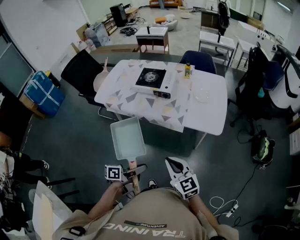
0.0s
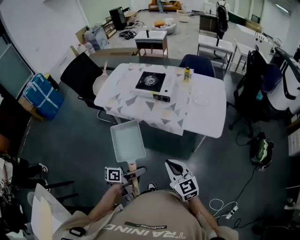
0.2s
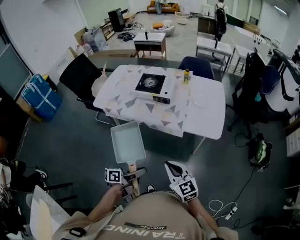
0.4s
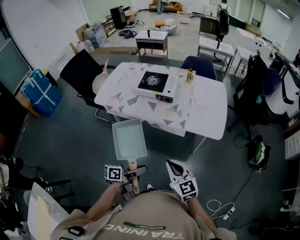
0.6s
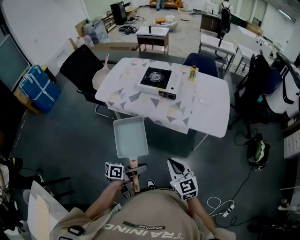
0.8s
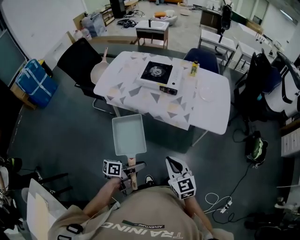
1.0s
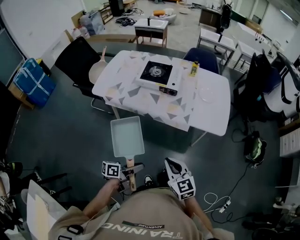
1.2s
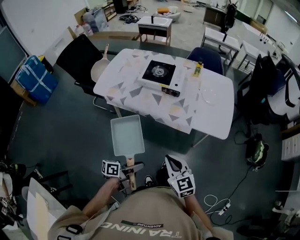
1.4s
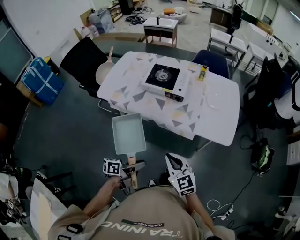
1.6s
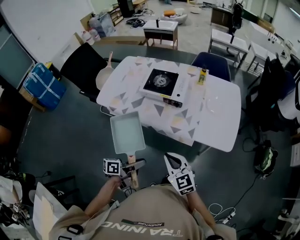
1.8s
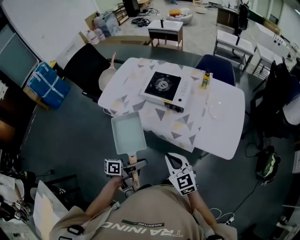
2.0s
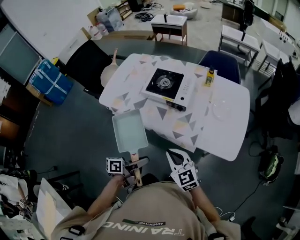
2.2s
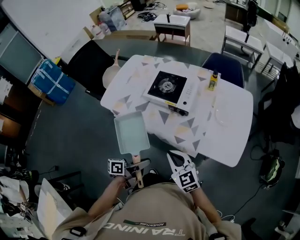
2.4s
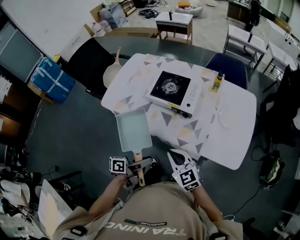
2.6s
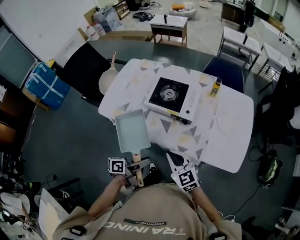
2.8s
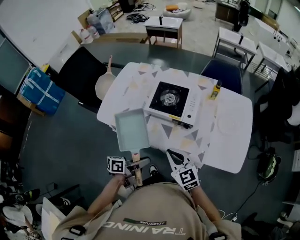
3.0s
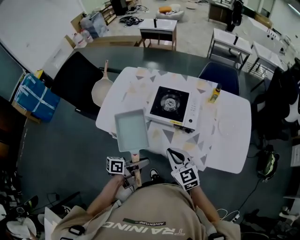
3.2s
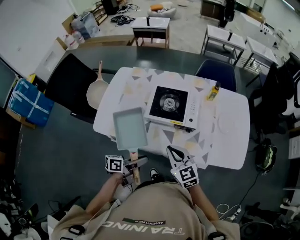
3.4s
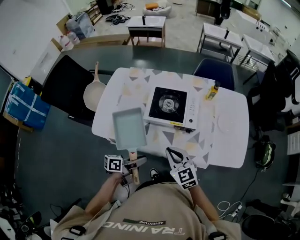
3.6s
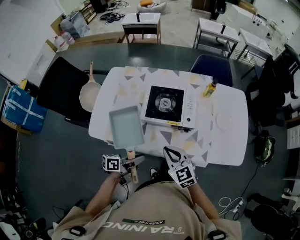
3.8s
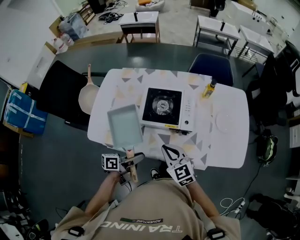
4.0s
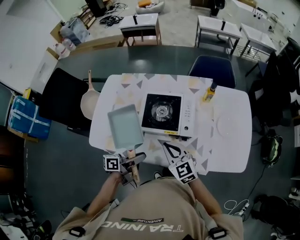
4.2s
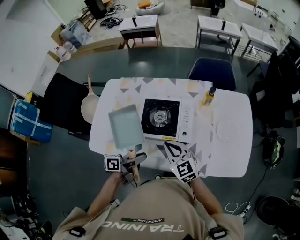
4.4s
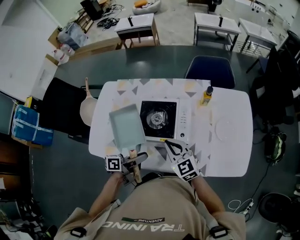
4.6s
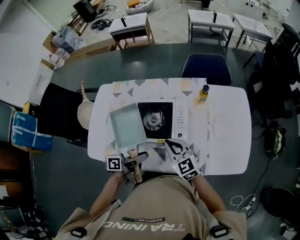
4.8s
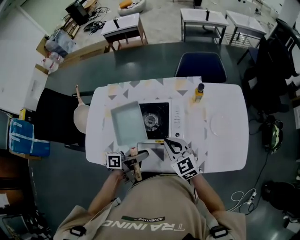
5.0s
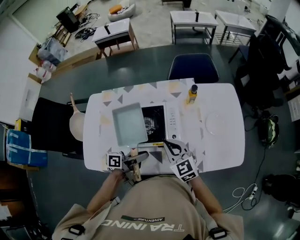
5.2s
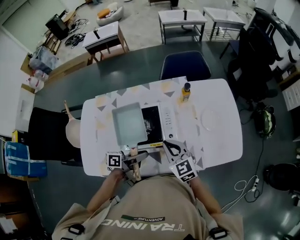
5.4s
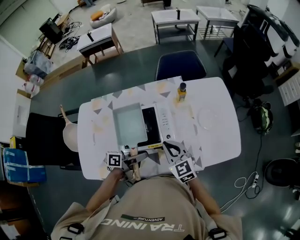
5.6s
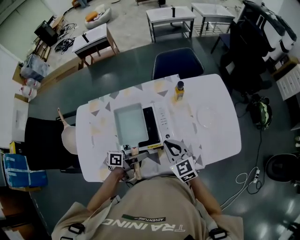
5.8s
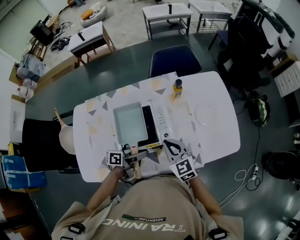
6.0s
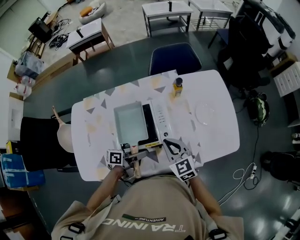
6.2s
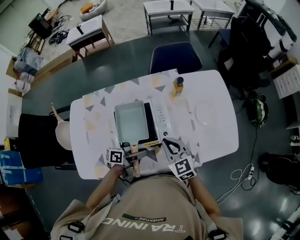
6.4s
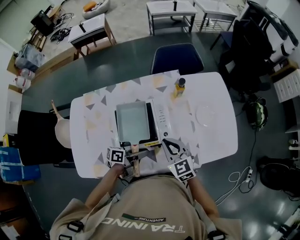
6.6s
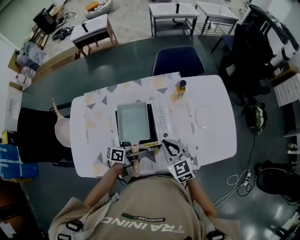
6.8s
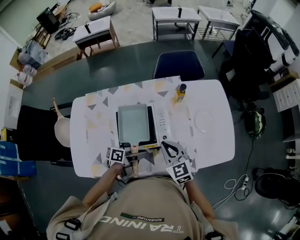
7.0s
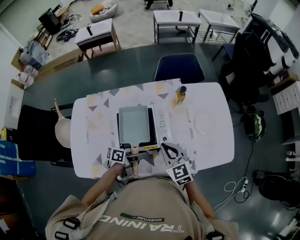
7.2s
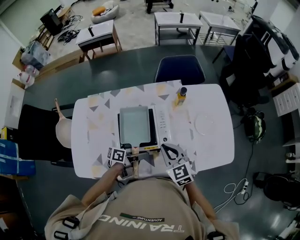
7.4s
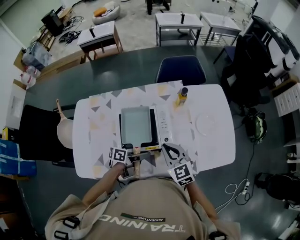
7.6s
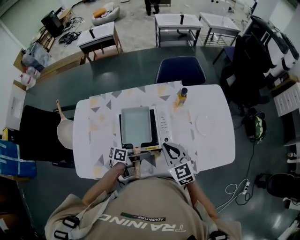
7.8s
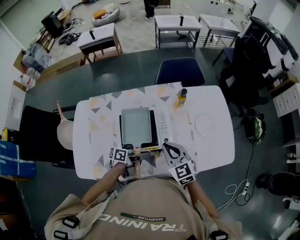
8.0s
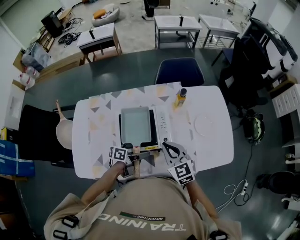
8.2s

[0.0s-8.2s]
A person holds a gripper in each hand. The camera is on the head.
0.0s to 1.6s: The right gripper changes place by approximately 10 cm.
1.6s to 3.2s: The right gripper ends up roughly 25 cm from where it was.
3.2s to 5.0s: The right gripper moves about 20 cm.

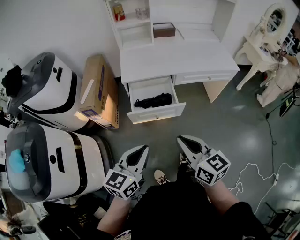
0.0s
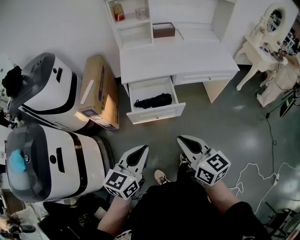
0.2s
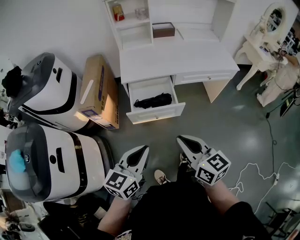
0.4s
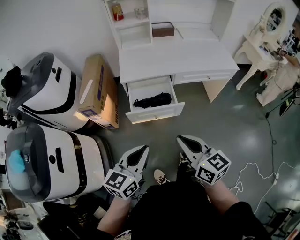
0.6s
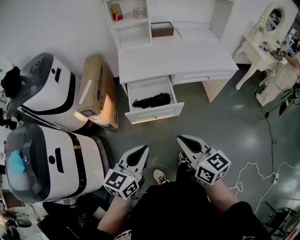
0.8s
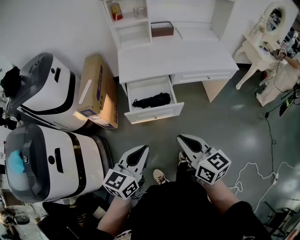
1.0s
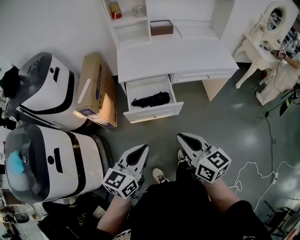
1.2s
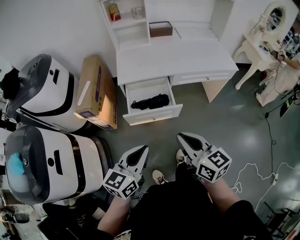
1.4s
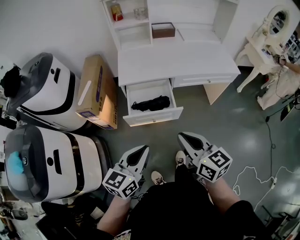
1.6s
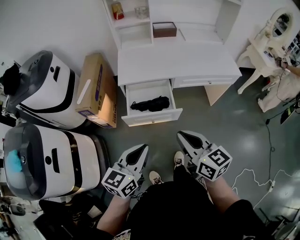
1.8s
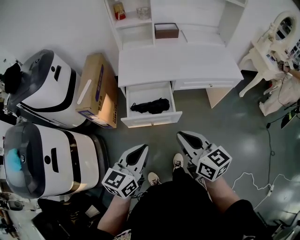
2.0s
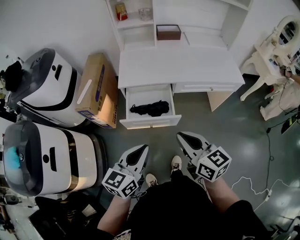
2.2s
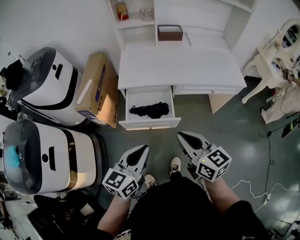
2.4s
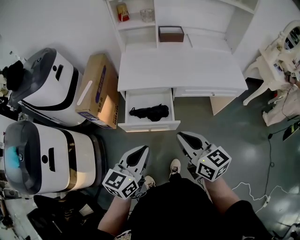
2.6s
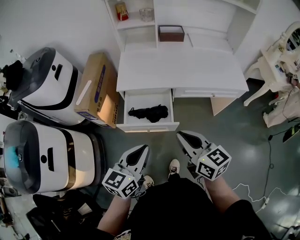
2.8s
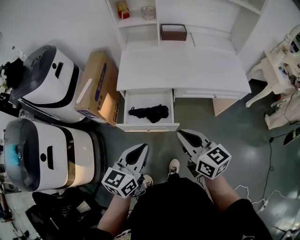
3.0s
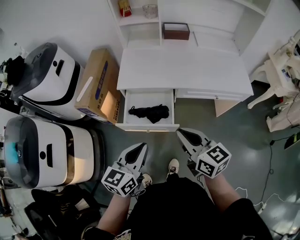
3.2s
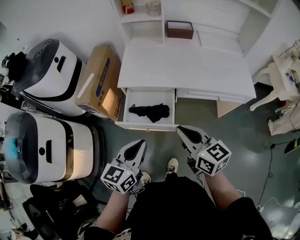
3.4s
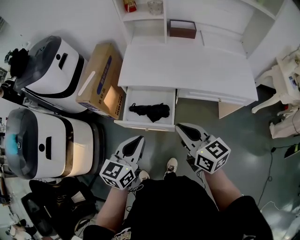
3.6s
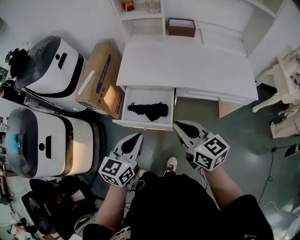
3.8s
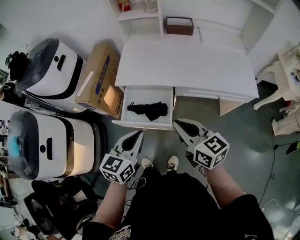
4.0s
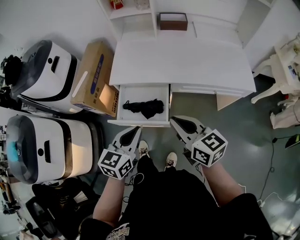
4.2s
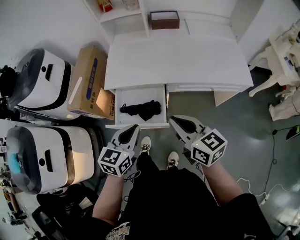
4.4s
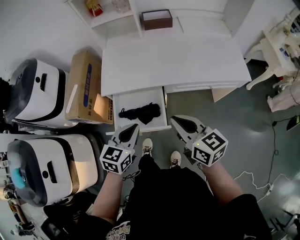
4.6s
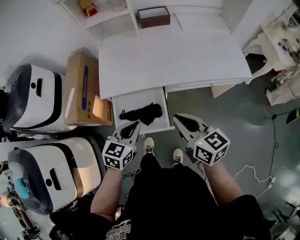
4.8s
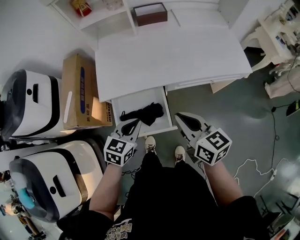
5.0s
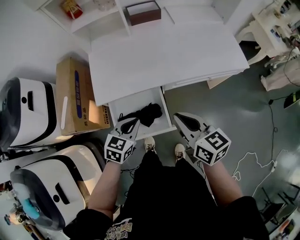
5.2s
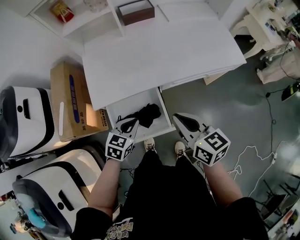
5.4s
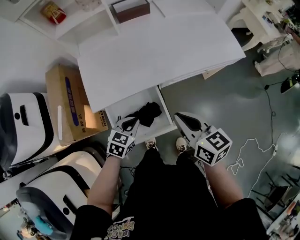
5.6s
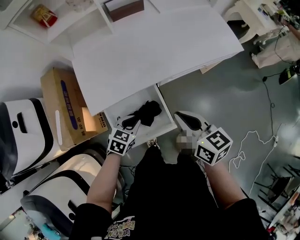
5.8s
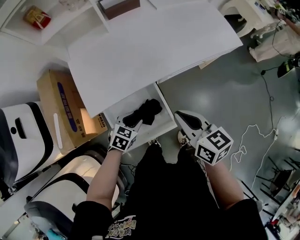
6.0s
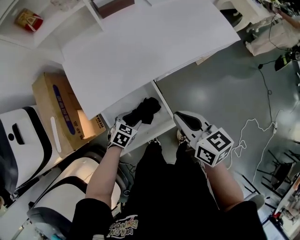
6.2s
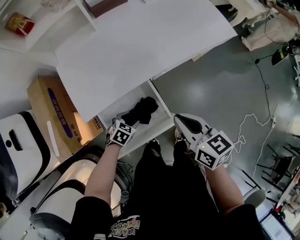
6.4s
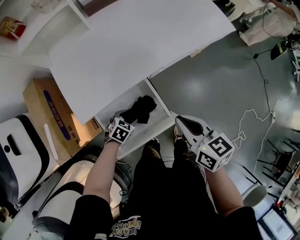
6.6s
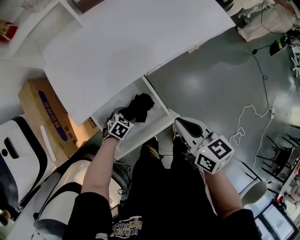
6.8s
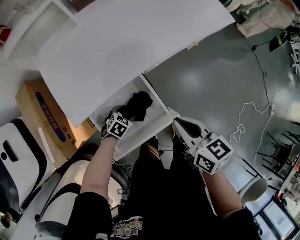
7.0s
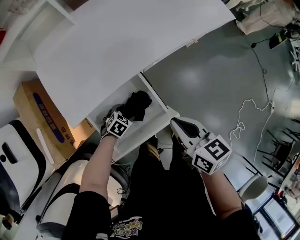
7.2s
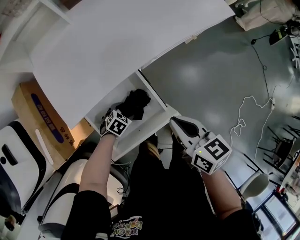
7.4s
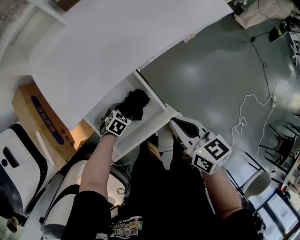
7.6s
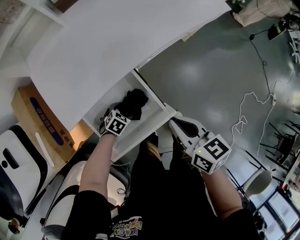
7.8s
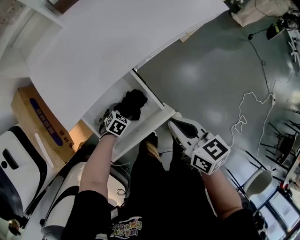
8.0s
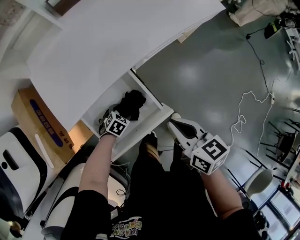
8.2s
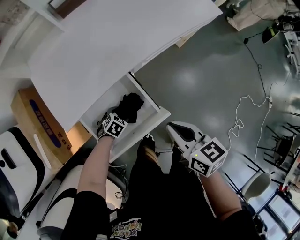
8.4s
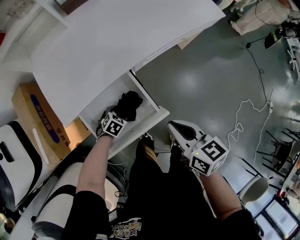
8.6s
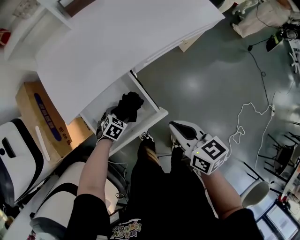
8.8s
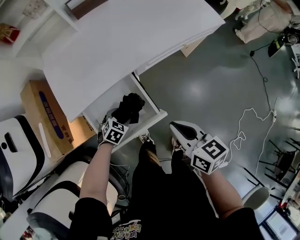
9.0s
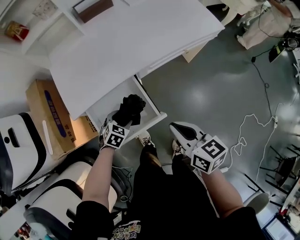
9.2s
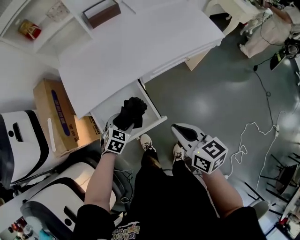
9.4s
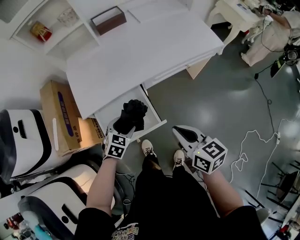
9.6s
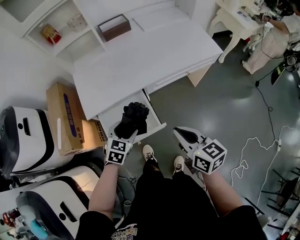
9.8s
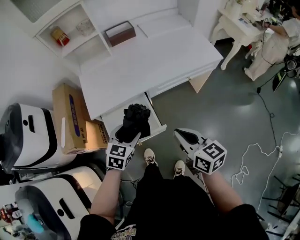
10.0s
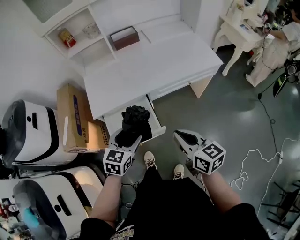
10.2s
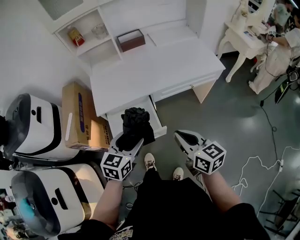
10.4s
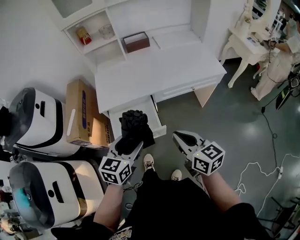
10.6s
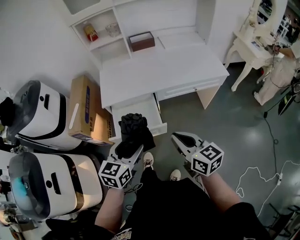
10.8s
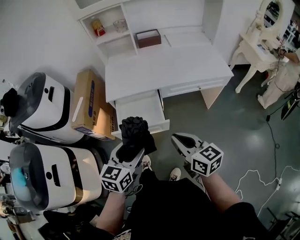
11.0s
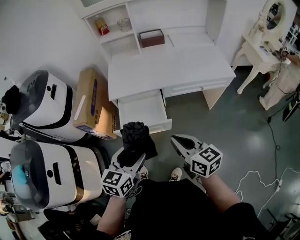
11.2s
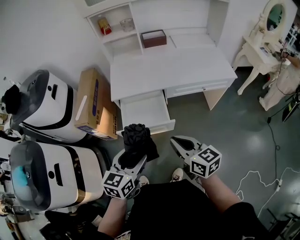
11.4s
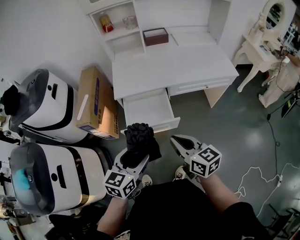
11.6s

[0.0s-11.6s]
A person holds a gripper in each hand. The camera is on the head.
0.0s to 1.4s: The grippers make only small movements.
1.4s to 2.8s: Both grippers move forward and to the right, some 15 cm.
2.8s to 4.4s: The left gripper moves forward, downward and to the right, approximately 15 cm. The right gripper goes approximately 10 cm forward and to the right.
4.4s to 5.8s: The left gripper travels downward by approximately 20 cm, and rotates some 40 degrees. The right gripper shifts by roughly 10 cm, and changes its angle by about 30 degrees.
5.8s to 7.2s: The right gripper travels downward by approximately 10 cm; the left gripper shifts some 20 cm downward, swivels about 30 degrees, and opens its fingers.
7.2s to 8.8s: The right gripper travels to the right by roughly 5 cm.
8.8s to 10.2s: The left gripper is displaced upward by roughly 35 cm, and points its fingers about 40 degrees further upward; the right gripper moves upward and backward, about 15 cm.
10.2s to 11.6s: The right gripper moves to the left and backward, about 15 cm, while the left gripper heads backward, to the left and upward, covering some 20 cm.

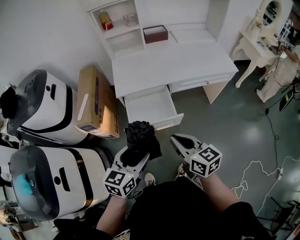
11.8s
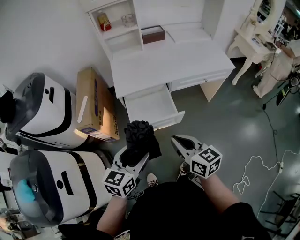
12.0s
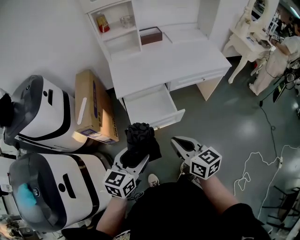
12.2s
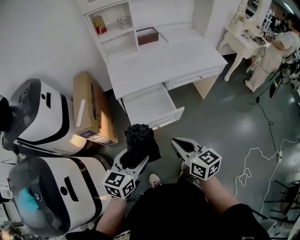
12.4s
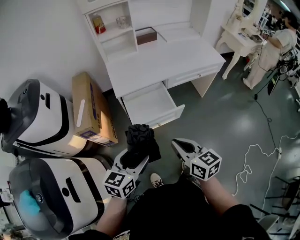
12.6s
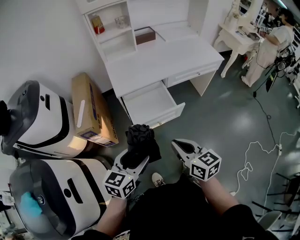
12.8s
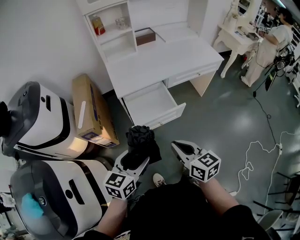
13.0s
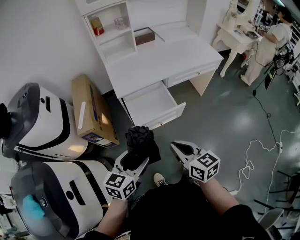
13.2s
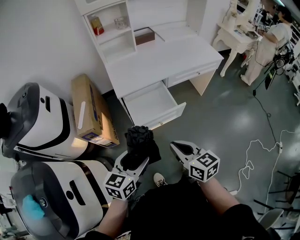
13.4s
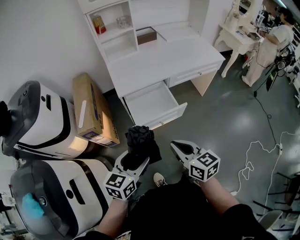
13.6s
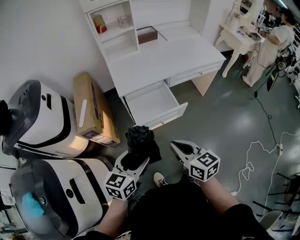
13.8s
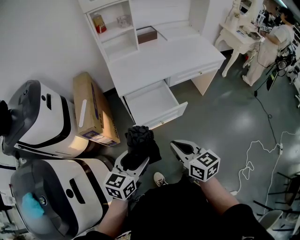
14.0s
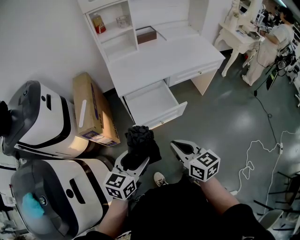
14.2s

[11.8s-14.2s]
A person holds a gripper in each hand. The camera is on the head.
11.8s to 13.0s: The two grippers go about 10 cm to the left and backward.
13.0s to 14.2s: Both grippers stay about where they are.

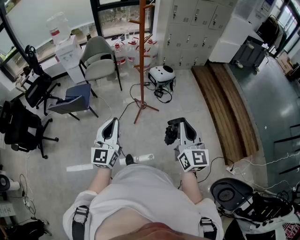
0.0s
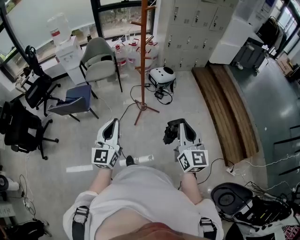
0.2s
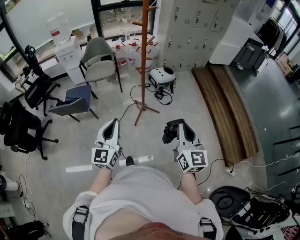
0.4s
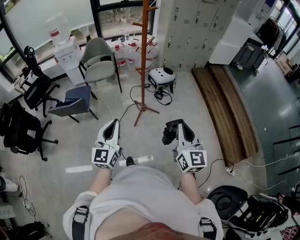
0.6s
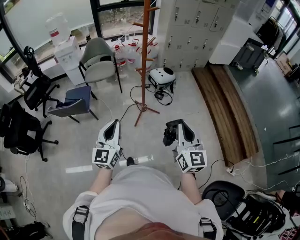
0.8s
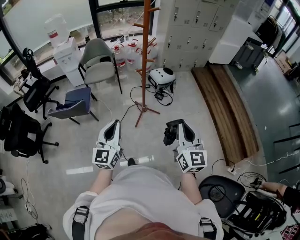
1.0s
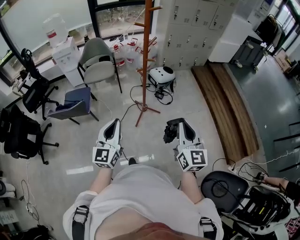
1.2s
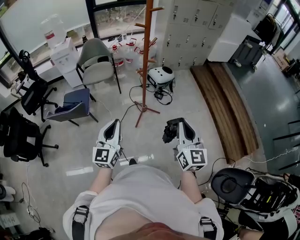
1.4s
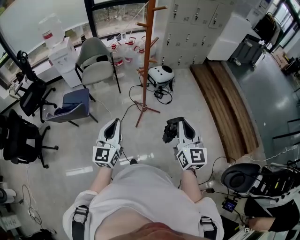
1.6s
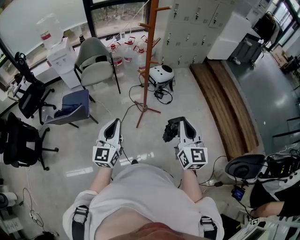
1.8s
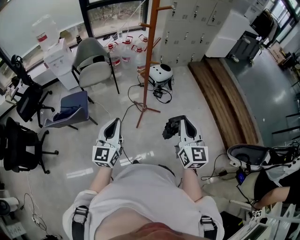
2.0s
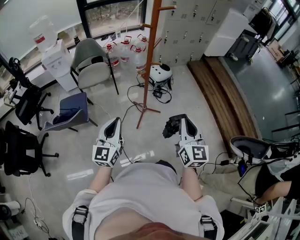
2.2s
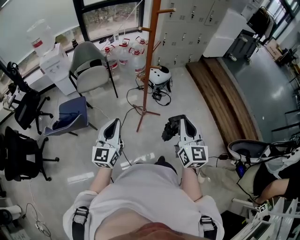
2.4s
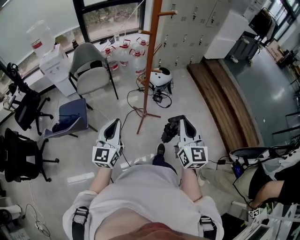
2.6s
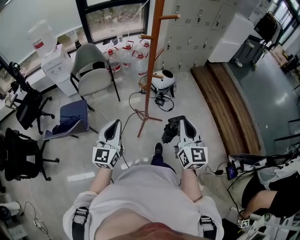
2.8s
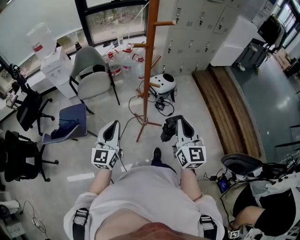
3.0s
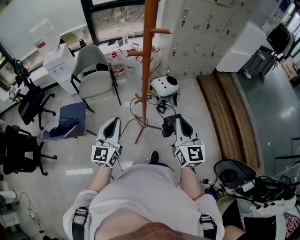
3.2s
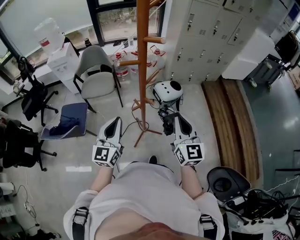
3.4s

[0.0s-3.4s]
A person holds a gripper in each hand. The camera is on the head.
0.0s to 1.6s: The right gripper shifts approximately 10 cm to the left and forward. The left gripper goes about 10 cm forward and to the left.
1.6s to 3.4s: Both grippers travel together forward, approximately 35 cm.
